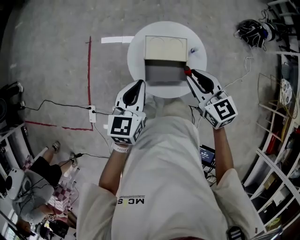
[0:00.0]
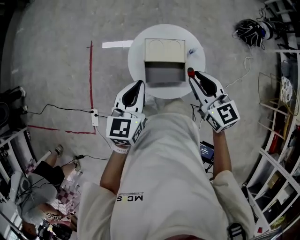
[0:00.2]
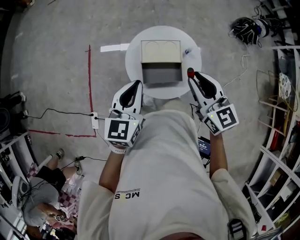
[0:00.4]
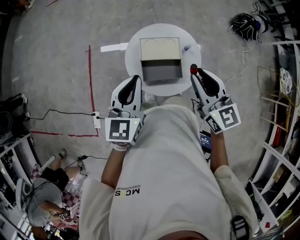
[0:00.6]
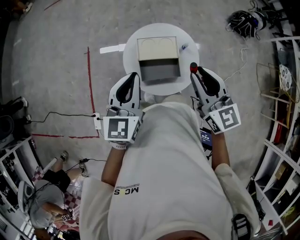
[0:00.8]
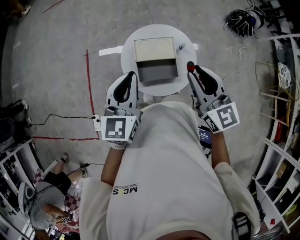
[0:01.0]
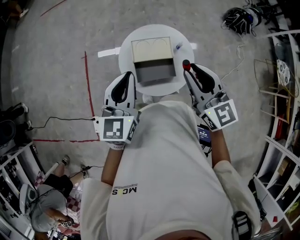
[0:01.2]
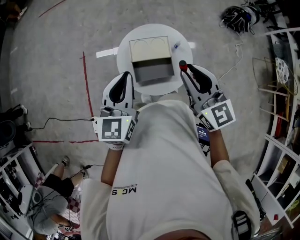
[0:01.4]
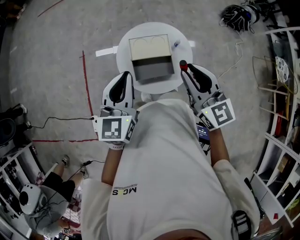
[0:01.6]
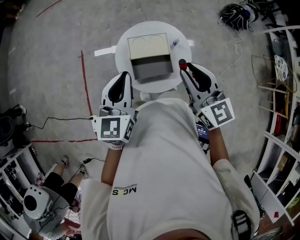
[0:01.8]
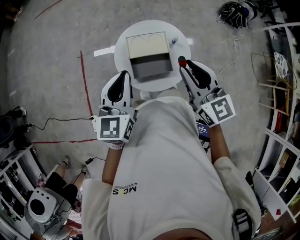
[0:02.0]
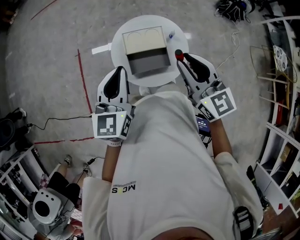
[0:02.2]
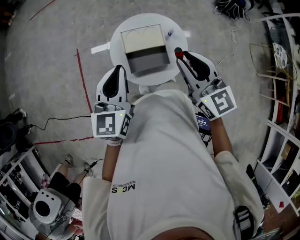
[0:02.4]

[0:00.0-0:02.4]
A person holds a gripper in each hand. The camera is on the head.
0:00.0 to 0:01.2: The two grippers go some 10 cm upward.
0:01.2 to 0:02.4: Neither gripper changes place.

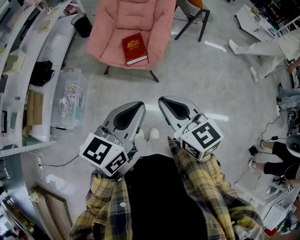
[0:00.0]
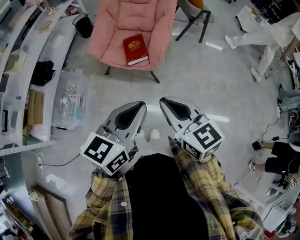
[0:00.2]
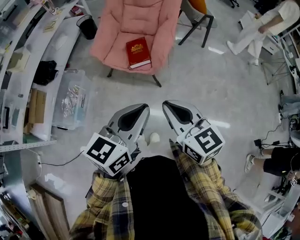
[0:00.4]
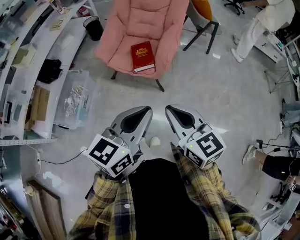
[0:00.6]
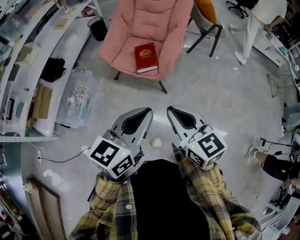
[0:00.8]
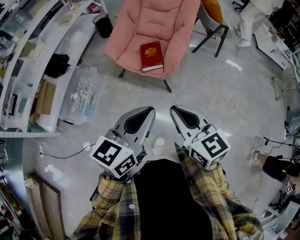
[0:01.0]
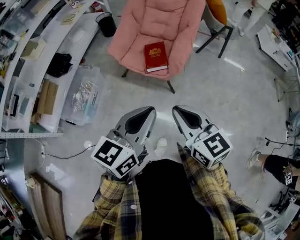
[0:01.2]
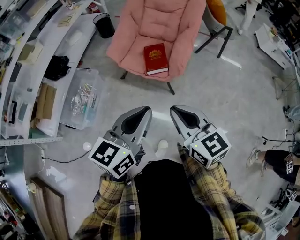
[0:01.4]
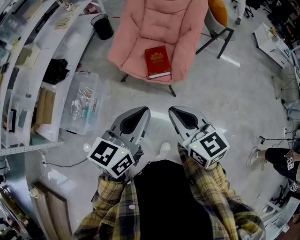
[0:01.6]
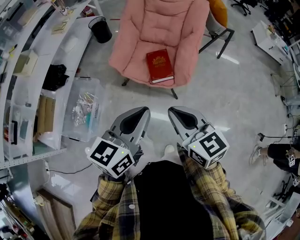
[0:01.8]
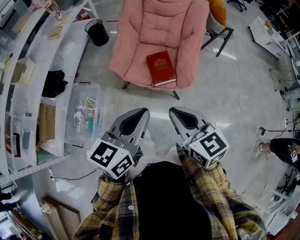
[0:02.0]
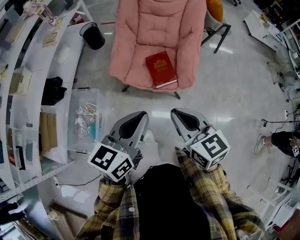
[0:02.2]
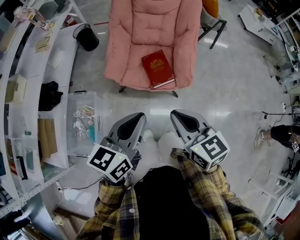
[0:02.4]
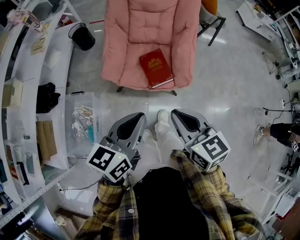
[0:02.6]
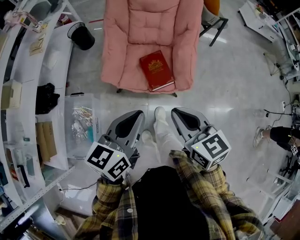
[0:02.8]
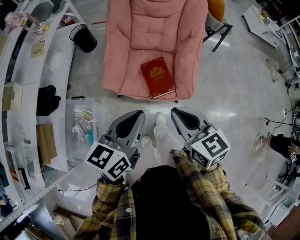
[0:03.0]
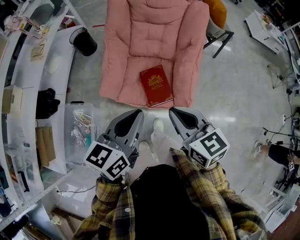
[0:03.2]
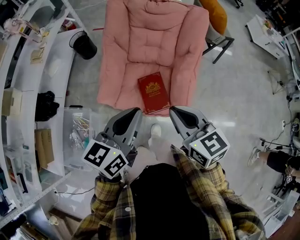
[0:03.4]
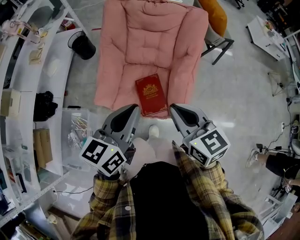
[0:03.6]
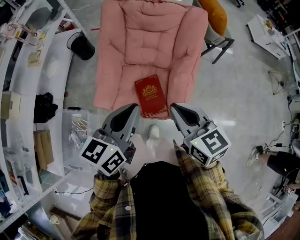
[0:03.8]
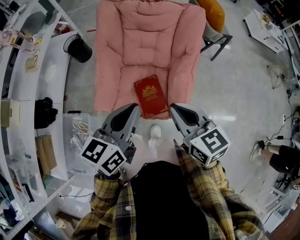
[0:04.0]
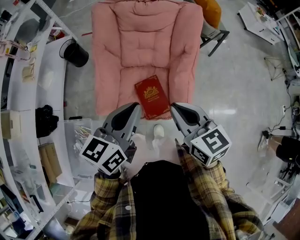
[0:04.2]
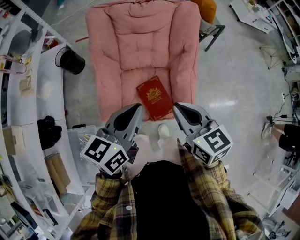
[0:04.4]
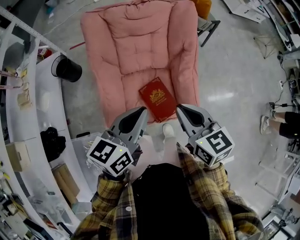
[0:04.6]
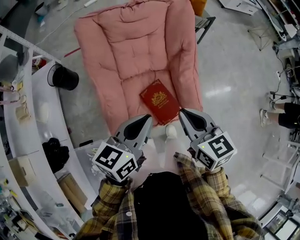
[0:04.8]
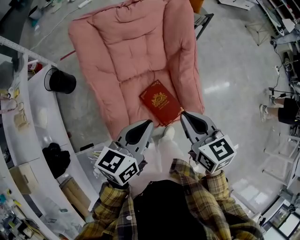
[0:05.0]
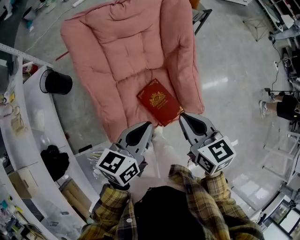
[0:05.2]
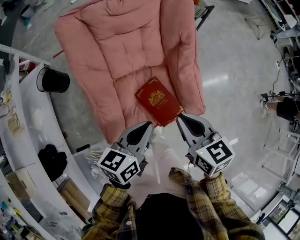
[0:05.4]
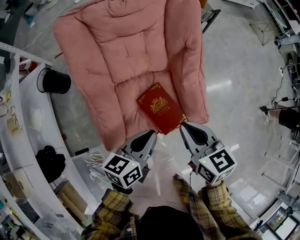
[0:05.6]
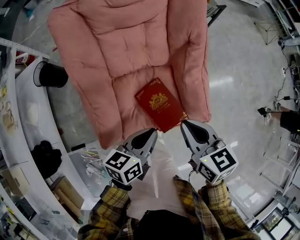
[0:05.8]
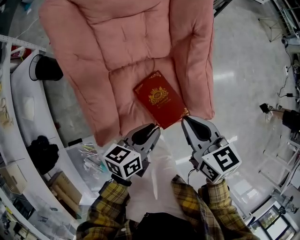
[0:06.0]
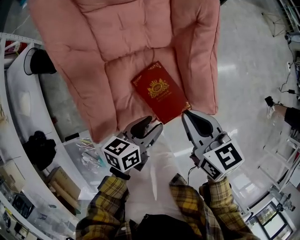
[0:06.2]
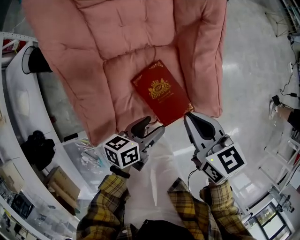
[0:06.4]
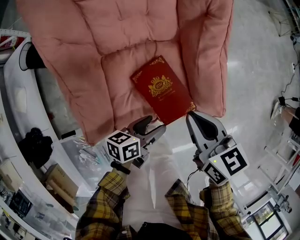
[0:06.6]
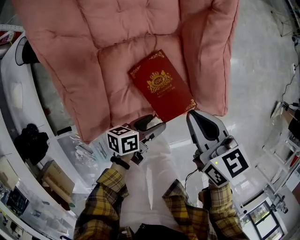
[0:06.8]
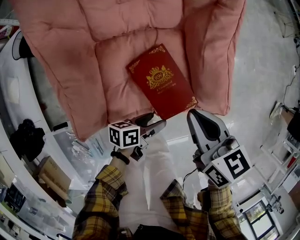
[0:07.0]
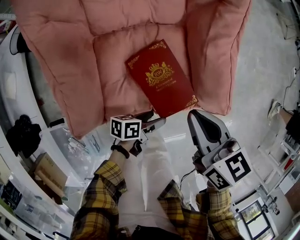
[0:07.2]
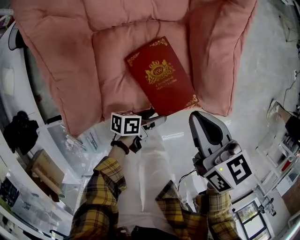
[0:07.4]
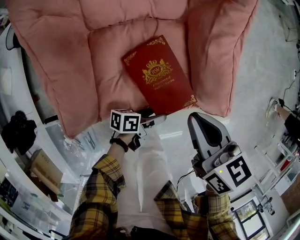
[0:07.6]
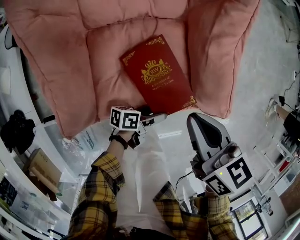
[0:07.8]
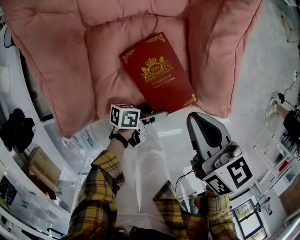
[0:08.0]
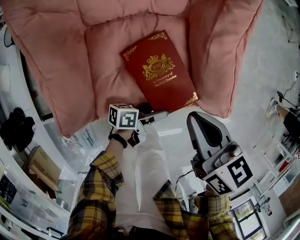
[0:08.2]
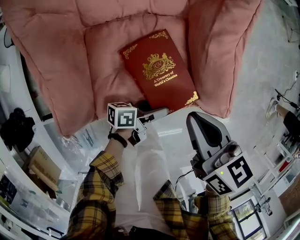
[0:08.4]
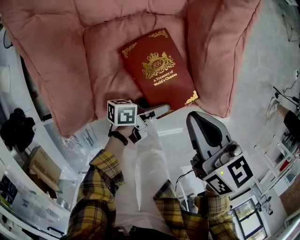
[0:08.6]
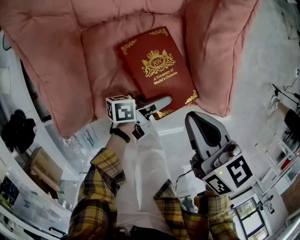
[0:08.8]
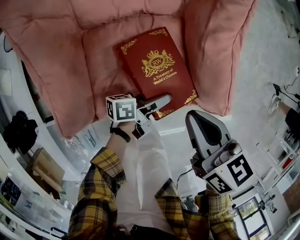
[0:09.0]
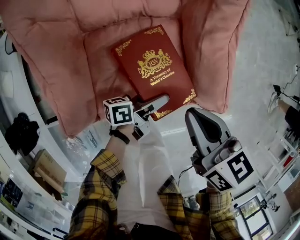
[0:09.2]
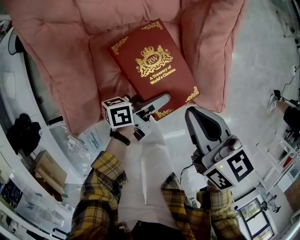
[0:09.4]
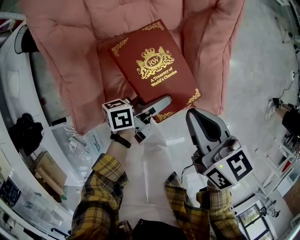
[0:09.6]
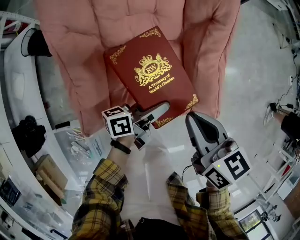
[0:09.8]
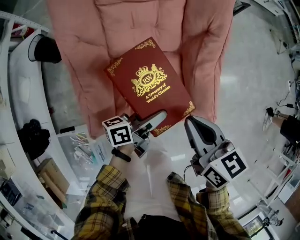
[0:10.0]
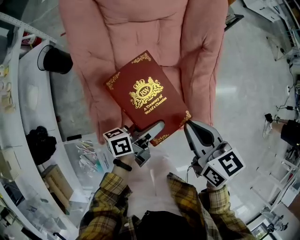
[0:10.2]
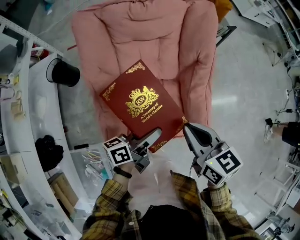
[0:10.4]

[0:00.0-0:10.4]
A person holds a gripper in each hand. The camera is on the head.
0:00.0 to 0:01.4: The right gripper moves about 5 cm; the left gripper heads to the left and forward, covering approximately 5 cm.
0:01.4 to 0:03.0: Both grippers travel together forward and to the left, roughly 25 cm.
0:03.0 to 0:04.4: Both grippers travel together forward, some 20 cm.
0:04.4 to 0:06.0: The left gripper goes approximately 25 cm downward, and rotates approximately 30 degrees. The right gripper shifts about 20 cm downward, and swivels roughly 20 degrees.
0:06.0 to 0:07.4: The right gripper is displaced downward by about 10 cm, while the left gripper travels downward by roughly 25 cm, rotates roughly 40 degrees, and opens its fingers.
0:07.4 to 0:09.0: The left gripper goes some 10 cm forward.
0:09.0 to 0:10.4: Both grippers move upward, about 25 cm. The left gripper turns by approximately 20 degrees.

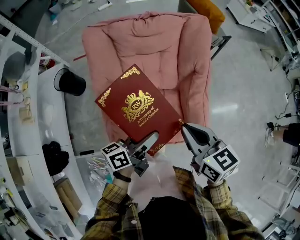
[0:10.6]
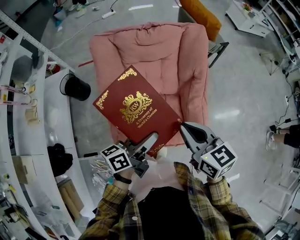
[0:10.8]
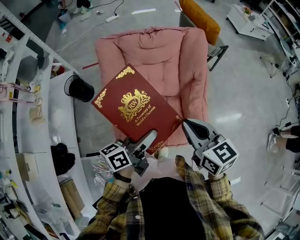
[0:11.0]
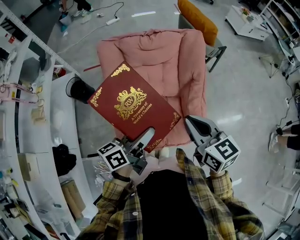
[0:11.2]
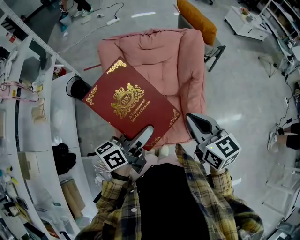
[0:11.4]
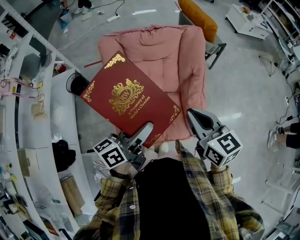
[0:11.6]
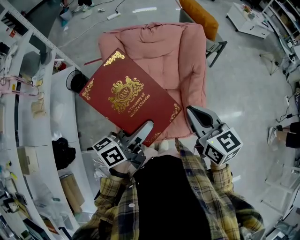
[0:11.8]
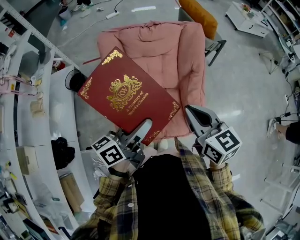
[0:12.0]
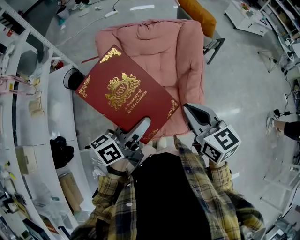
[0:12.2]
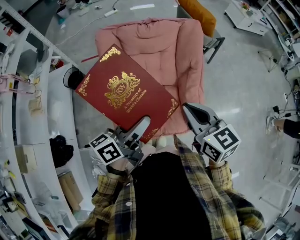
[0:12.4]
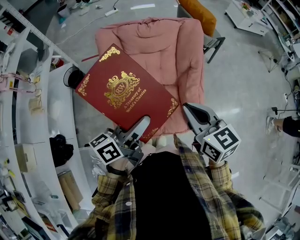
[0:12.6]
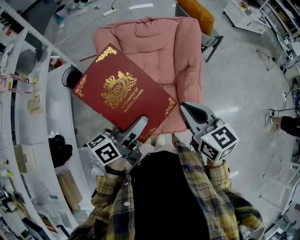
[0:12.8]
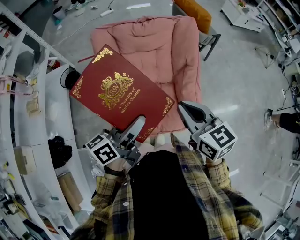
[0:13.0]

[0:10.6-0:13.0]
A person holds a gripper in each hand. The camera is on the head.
0:10.6 to 0:11.8: The right gripper shifts some 10 cm upward. The left gripper heads upward, covering about 15 cm.
0:11.8 to 0:13.0: The two grippers keep their place.

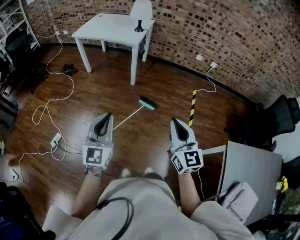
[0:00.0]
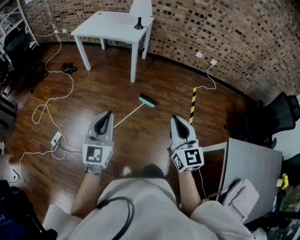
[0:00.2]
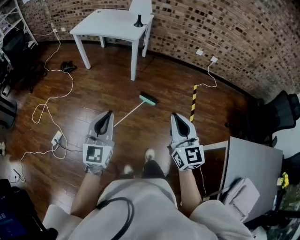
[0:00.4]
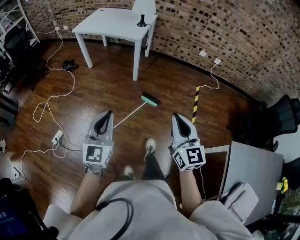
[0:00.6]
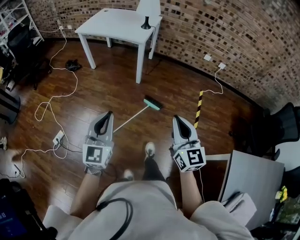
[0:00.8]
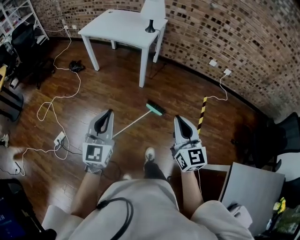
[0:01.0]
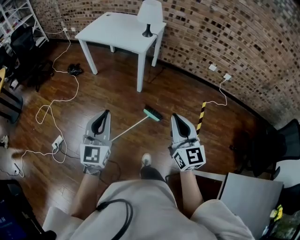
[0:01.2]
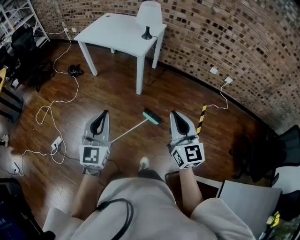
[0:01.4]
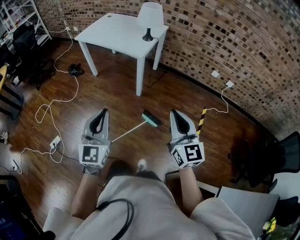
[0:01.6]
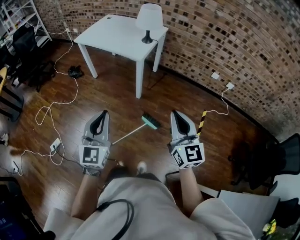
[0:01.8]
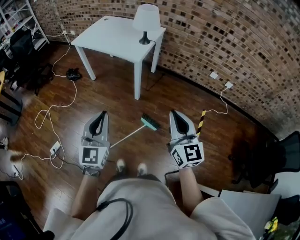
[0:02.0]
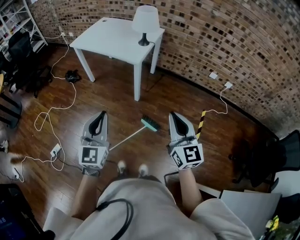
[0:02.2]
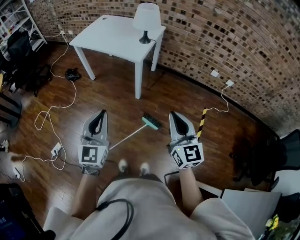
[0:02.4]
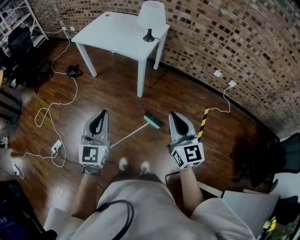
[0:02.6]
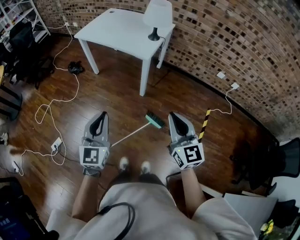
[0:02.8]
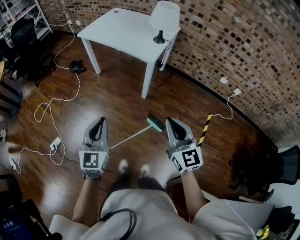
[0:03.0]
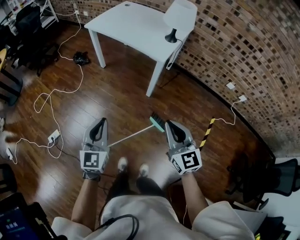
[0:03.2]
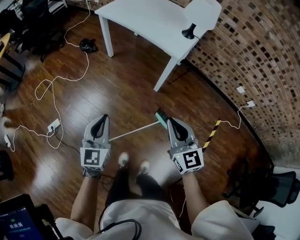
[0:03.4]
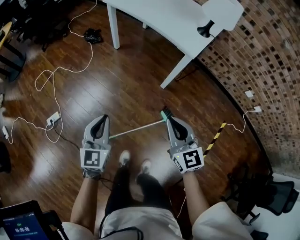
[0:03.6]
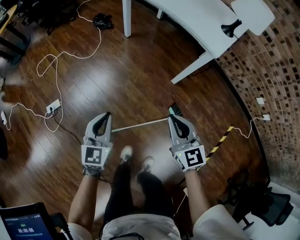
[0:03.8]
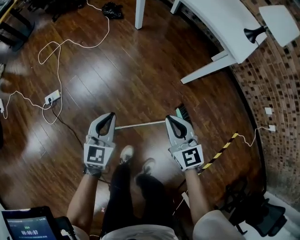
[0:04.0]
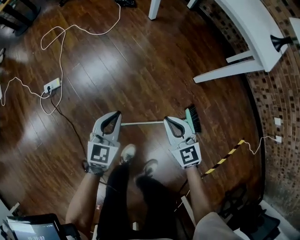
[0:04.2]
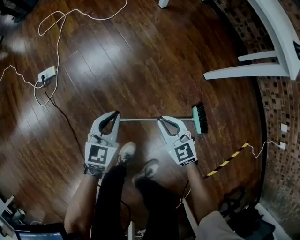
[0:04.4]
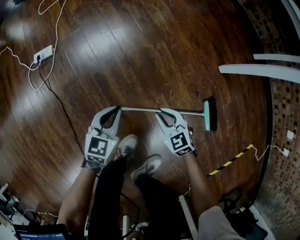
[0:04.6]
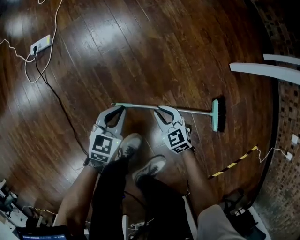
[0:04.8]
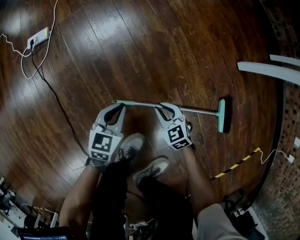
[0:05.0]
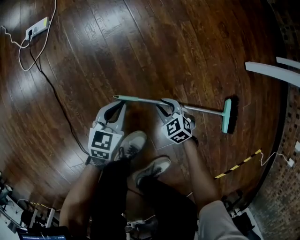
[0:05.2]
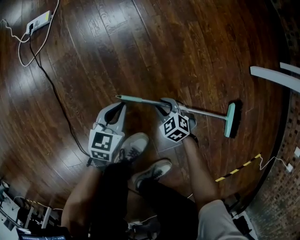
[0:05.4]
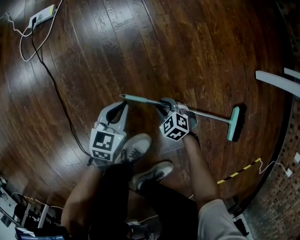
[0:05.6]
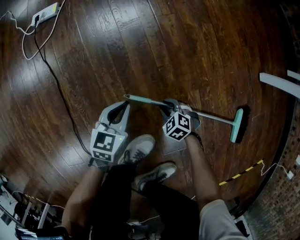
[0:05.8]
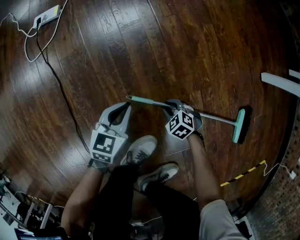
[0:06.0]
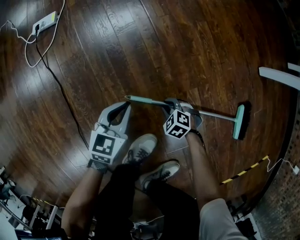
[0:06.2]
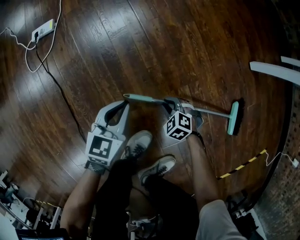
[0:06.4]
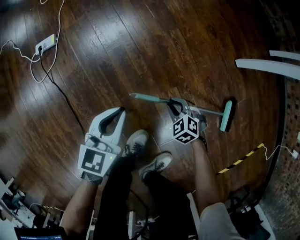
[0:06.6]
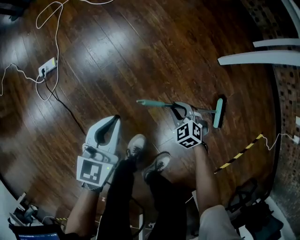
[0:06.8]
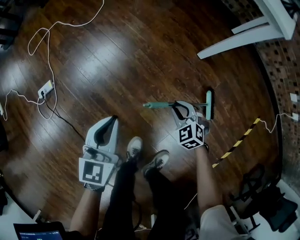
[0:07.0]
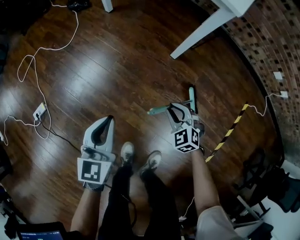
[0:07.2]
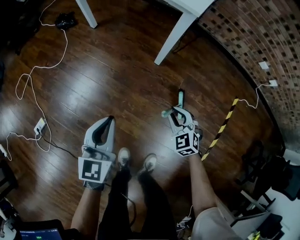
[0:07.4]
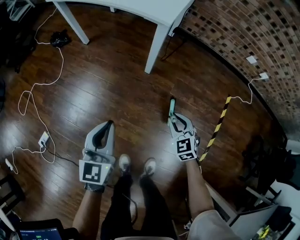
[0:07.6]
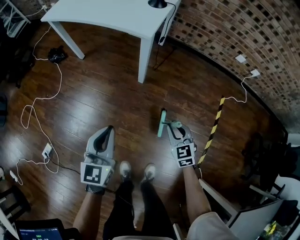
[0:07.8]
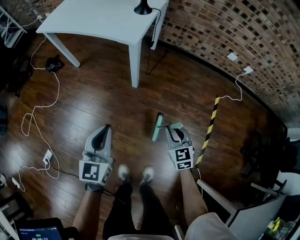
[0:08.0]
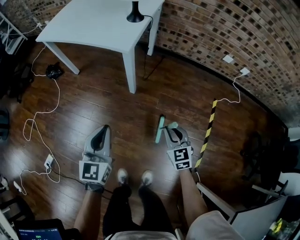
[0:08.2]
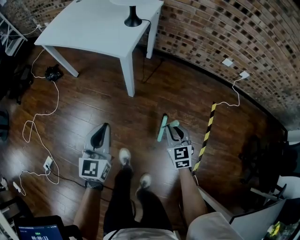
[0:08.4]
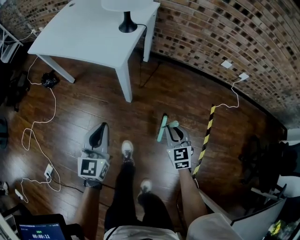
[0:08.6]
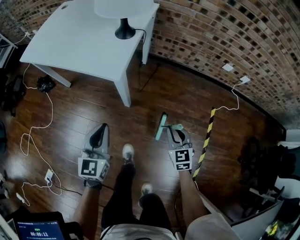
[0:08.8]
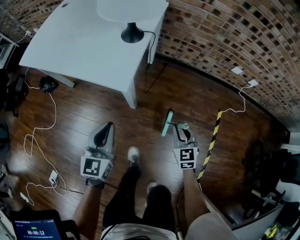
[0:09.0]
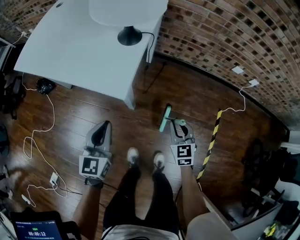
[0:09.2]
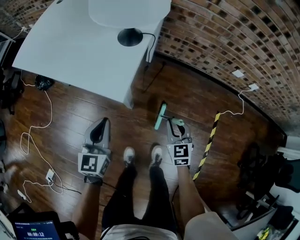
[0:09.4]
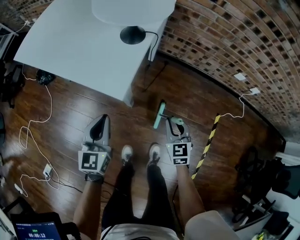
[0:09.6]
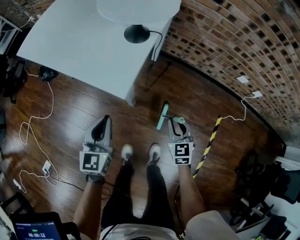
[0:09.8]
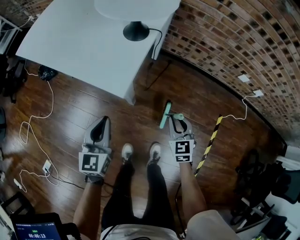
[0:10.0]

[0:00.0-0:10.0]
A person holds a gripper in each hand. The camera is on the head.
0:00.0 to 0:01.4: The grippers both shift forward by approximately 25 cm.
0:01.4 to 0:02.8: Both grippers travel together forward, approximately 10 cm.
0:02.8 to 0:04.2: The two grippers go some 50 cm downward. The left gripper swivels approximately 30 degrees. The right gripper turns by some 50 degrees.
0:04.2 to 0:05.8: The two grippers go about 50 cm downward. The left gripper turns by roughly 30 degrees. Meanwhile the right gripper tilts its fingers roughly 40 degrees downward, and opens up.
0:05.8 to 0:07.2: The grippers both shift upward by about 50 cm. The left gripper changes its angle by roughly 30 degrees. Meanwhile the right gripper swivels some 50 degrees.
0:07.2 to 0:08.6: The left gripper travels to the right, upward and forward by about 35 cm. Meanwhile the right gripper moves to the right and upward, about 35 cm, and changes its angle by some 50 degrees.
0:08.6 to 0:10.0: The grippers both shift forward by about 20 cm.
